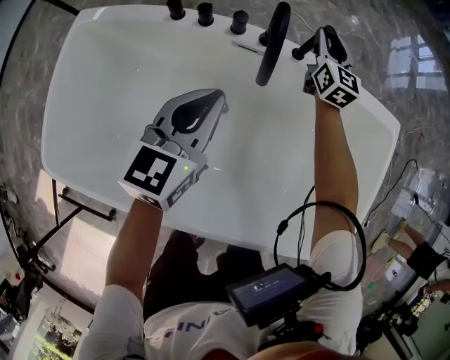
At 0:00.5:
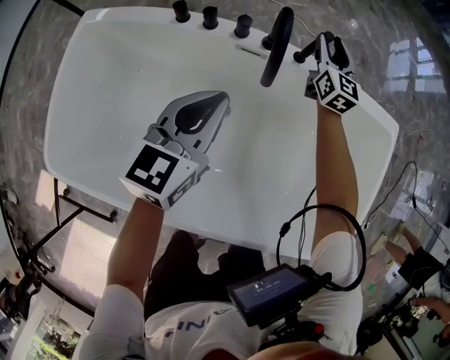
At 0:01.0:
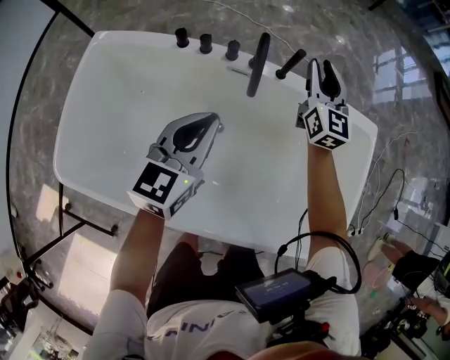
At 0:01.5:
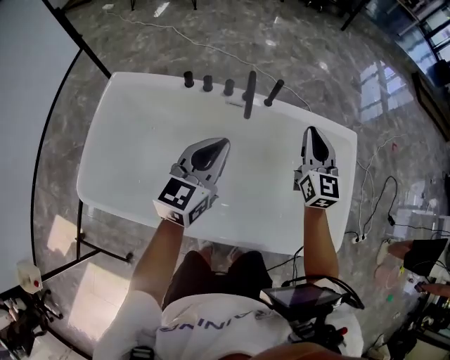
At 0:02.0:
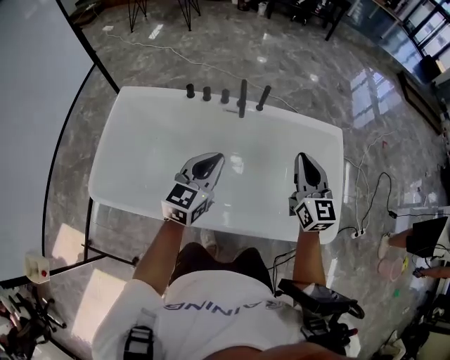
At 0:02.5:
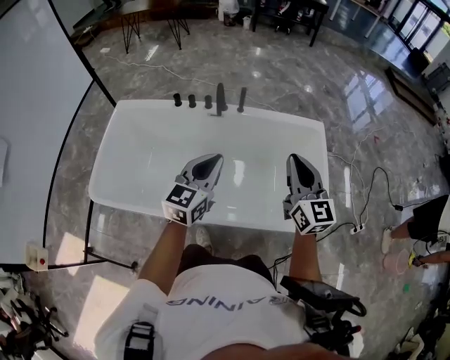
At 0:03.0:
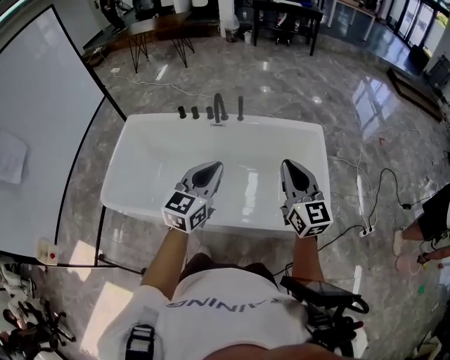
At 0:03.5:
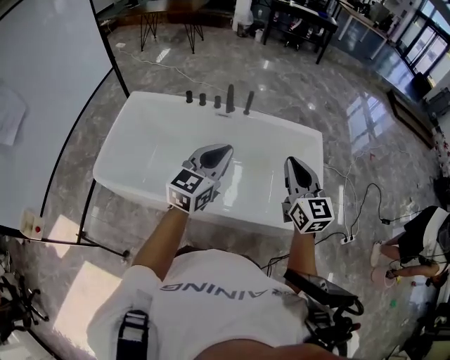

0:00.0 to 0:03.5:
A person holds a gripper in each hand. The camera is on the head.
0:00.0 to 0:02.0: The left gripper is displaced backward and upward by some 35 cm. The right gripper goes some 60 cm backward and upward, and closes up.
0:02.0 to 0:03.5: The left gripper travels backward, to the right and upward by about 25 cm, while the right gripper shifts some 25 cm backward, upward and to the right.

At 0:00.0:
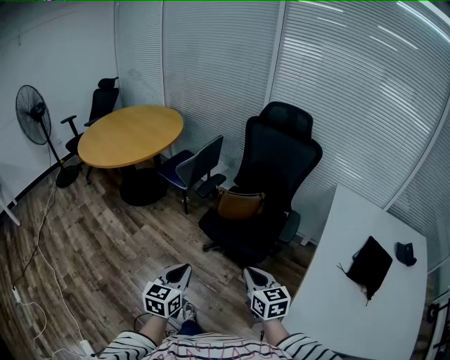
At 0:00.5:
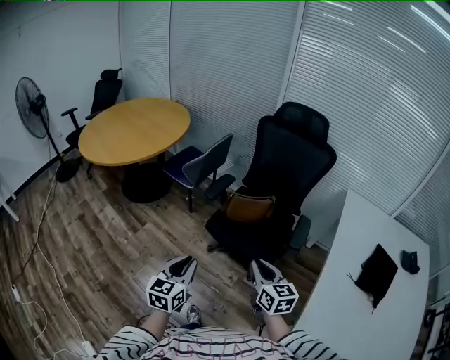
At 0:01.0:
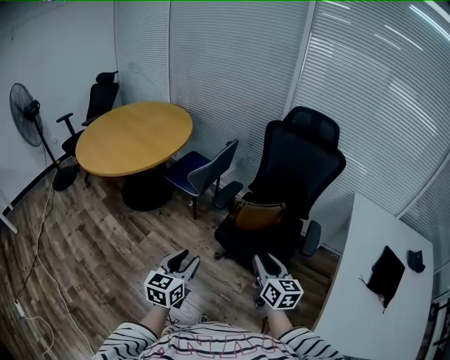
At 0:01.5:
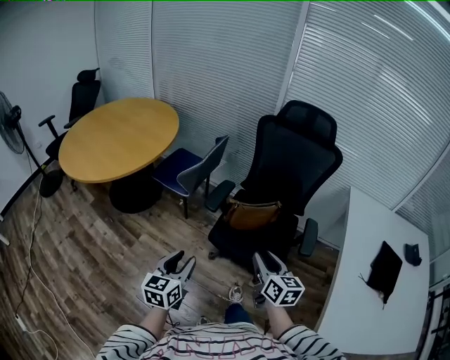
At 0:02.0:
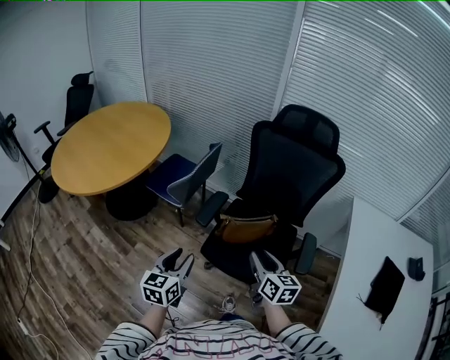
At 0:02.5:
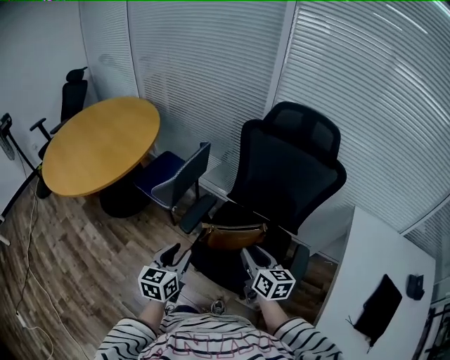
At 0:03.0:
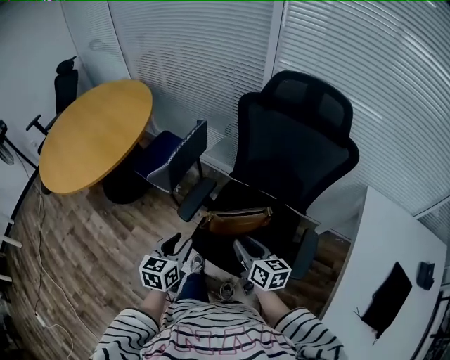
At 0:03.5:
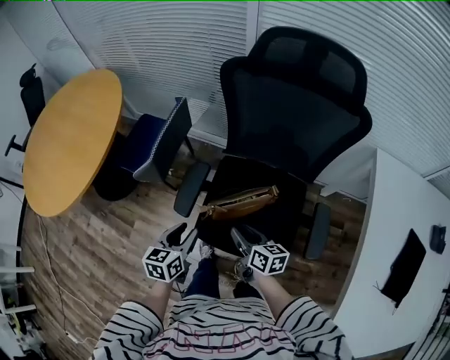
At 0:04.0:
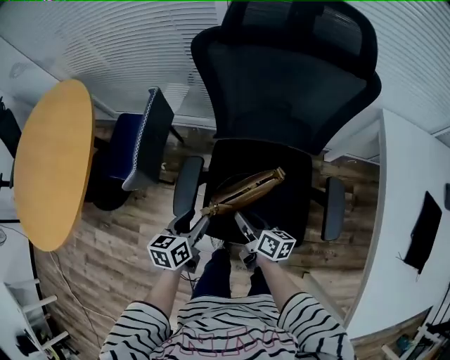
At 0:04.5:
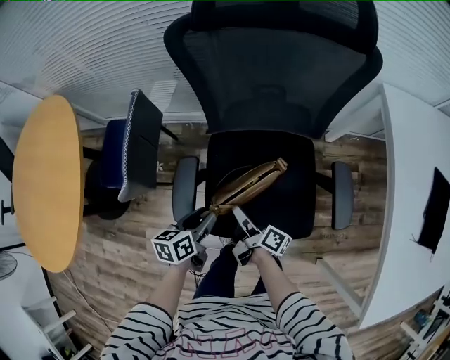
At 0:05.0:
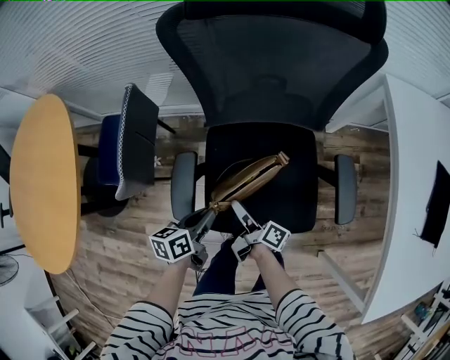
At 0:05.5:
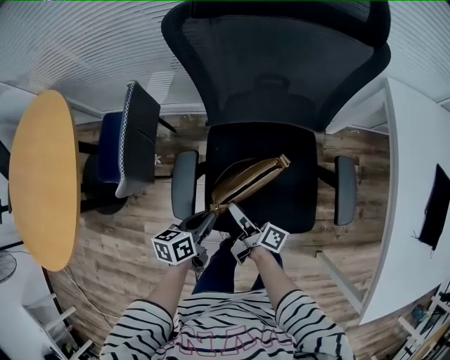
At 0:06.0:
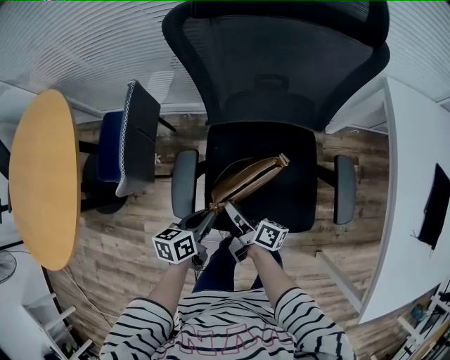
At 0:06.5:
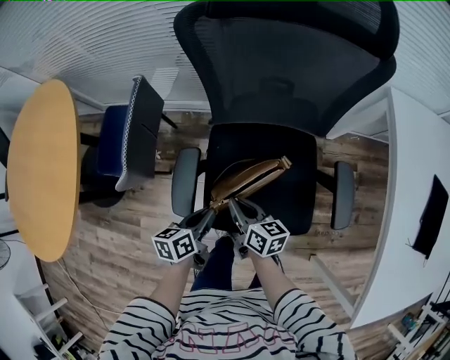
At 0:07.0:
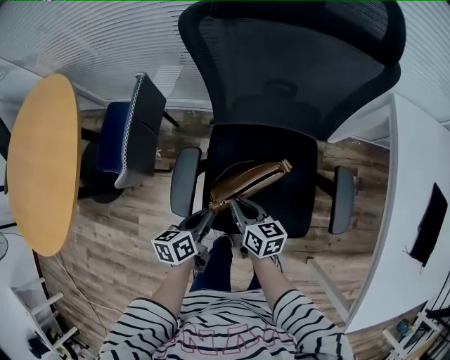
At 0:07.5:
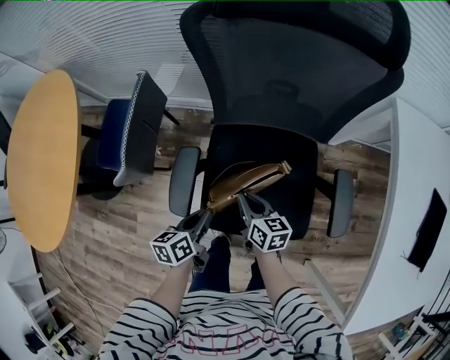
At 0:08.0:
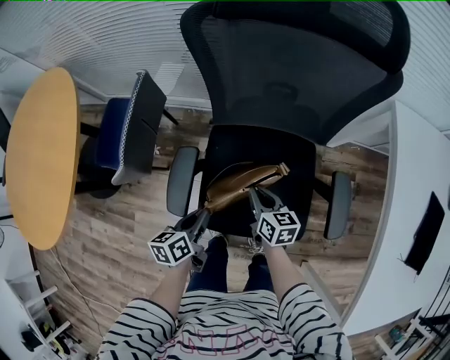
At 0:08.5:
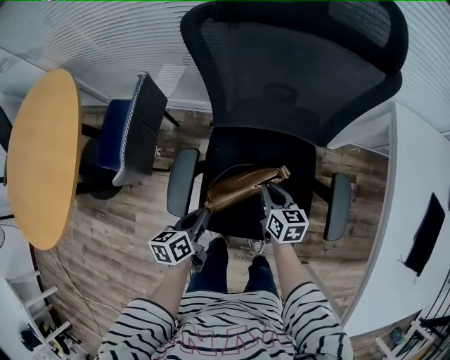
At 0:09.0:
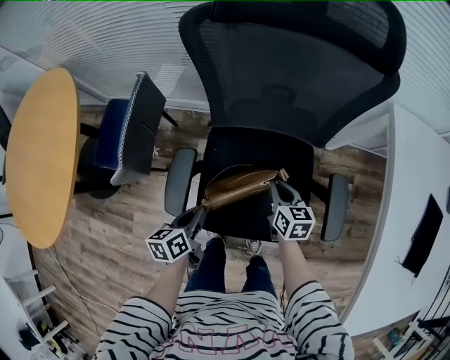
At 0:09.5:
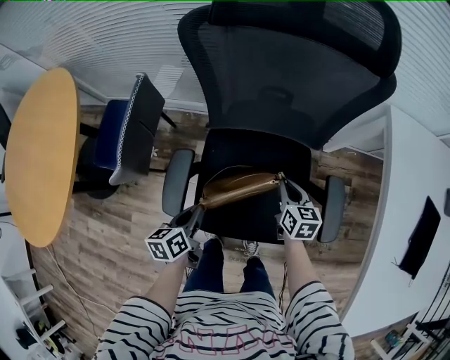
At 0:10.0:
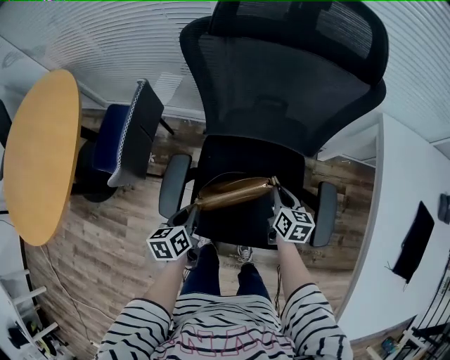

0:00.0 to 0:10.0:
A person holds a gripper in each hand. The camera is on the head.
0:00.0 to 0:02.0: The grippers both shift forward by roughly 30 cm. The right gripper changes its angle by some 20 degrees, and opens its fingers. Meanwhile the left gripper opens up.
0:02.0 to 0:04.0: The right gripper heads downward and forward, covering roughly 30 cm, and swivels some 40 degrees, while the left gripper heads forward and downward, covering some 35 cm, and rotates about 30 degrees.
0:04.0 to 0:06.0: The left gripper shifts about 5 cm downward, and closes up. Meanwhile the right gripper ends up roughly 5 cm from where it was, swivels roughly 20 degrees, and closes up.
0:06.0 to 0:08.0: The right gripper heads to the right and forward, covering approximately 10 cm, and rotates around the line of its fingers by approximately 40 degrees, counterclockwise from behind.
0:08.0 to 0:10.0: The right gripper heads to the right, covering some 10 cm.

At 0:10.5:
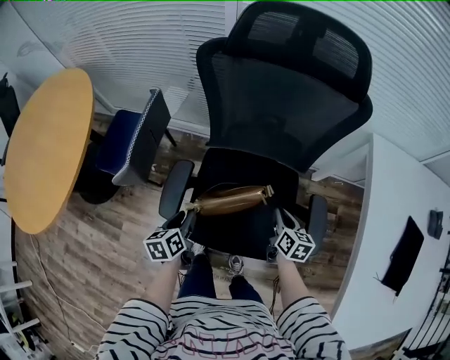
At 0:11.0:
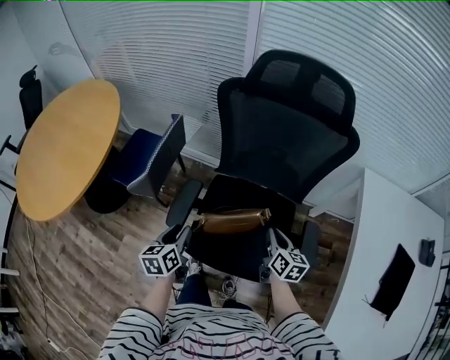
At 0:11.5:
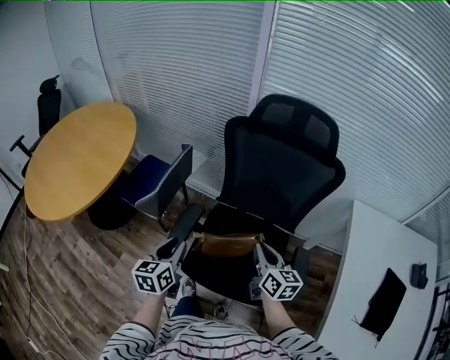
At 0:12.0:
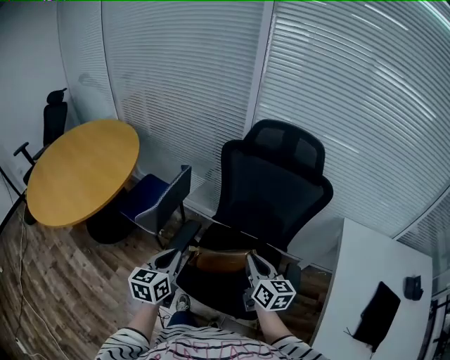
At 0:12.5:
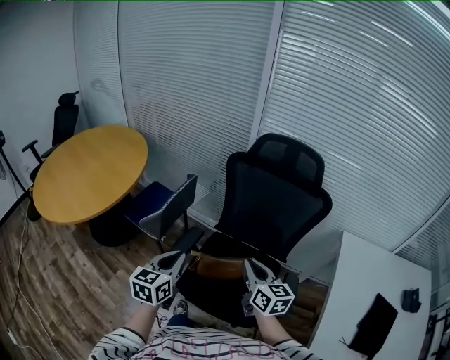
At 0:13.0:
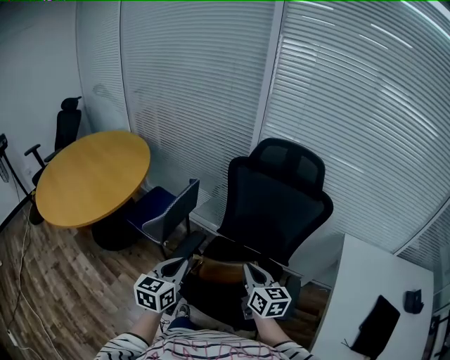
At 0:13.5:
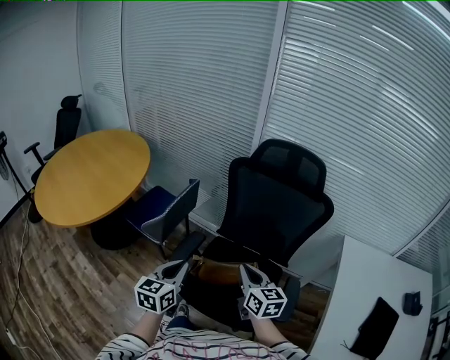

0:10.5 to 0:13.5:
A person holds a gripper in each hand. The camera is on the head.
0:10.5 to 0:12.0: The grippers both shift upward by some 25 cm. The left gripper swivels roughly 30 degrees, and closes. The right gripper turns by about 30 degrees.
0:12.0 to 0:13.5: The grippers make only small movements.

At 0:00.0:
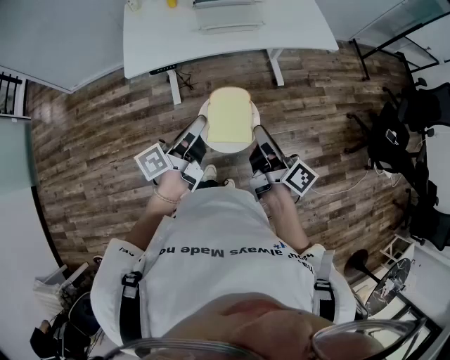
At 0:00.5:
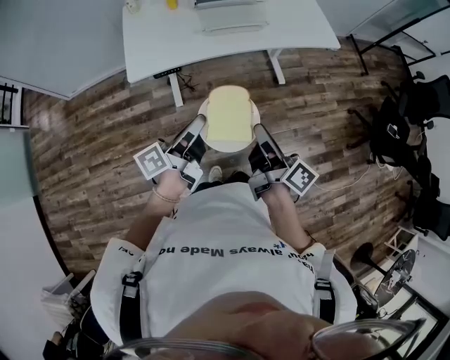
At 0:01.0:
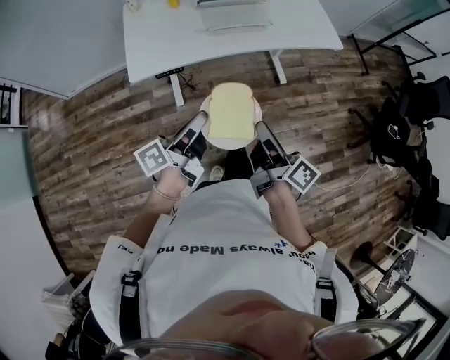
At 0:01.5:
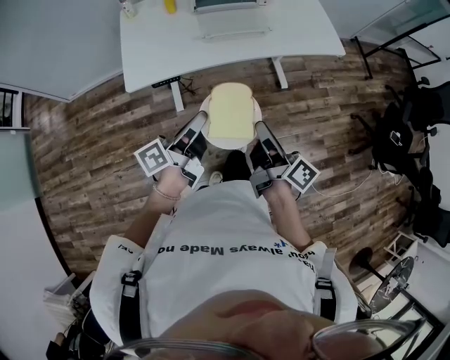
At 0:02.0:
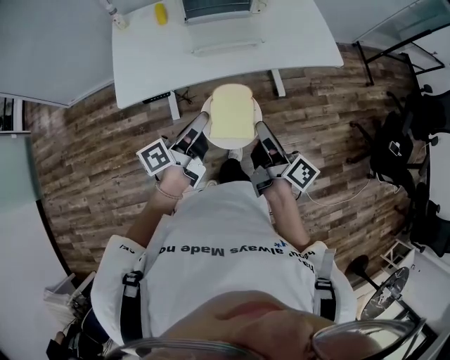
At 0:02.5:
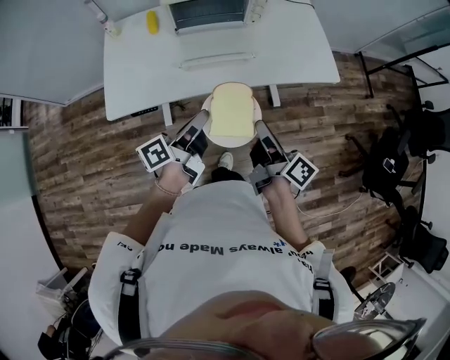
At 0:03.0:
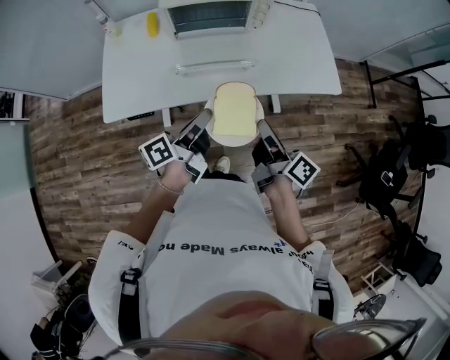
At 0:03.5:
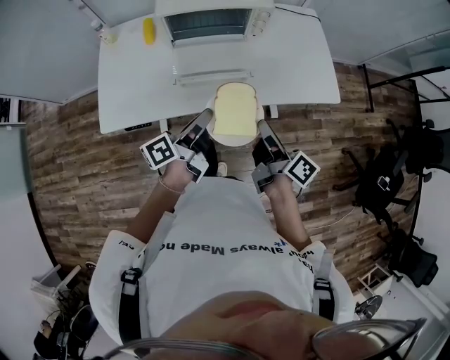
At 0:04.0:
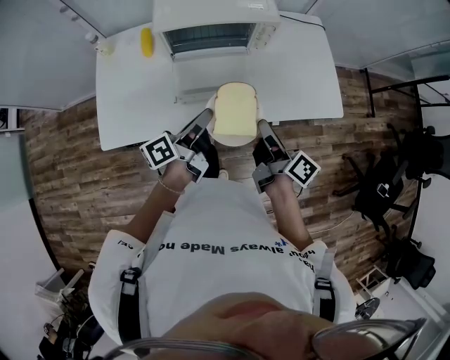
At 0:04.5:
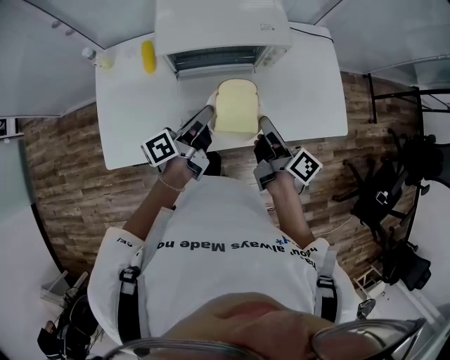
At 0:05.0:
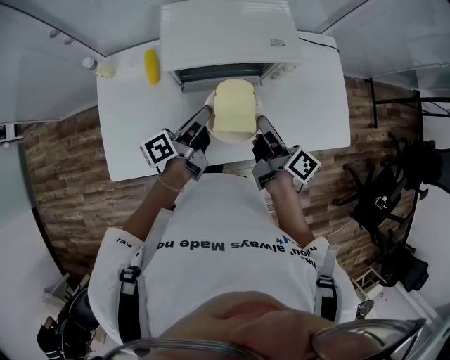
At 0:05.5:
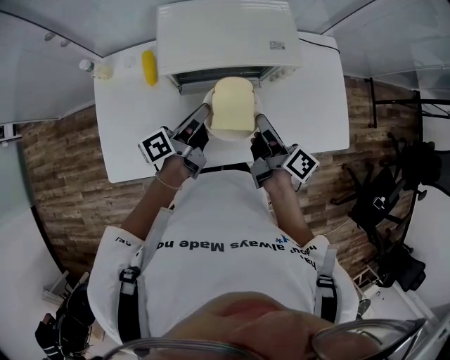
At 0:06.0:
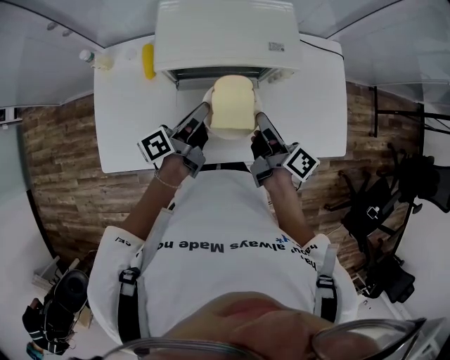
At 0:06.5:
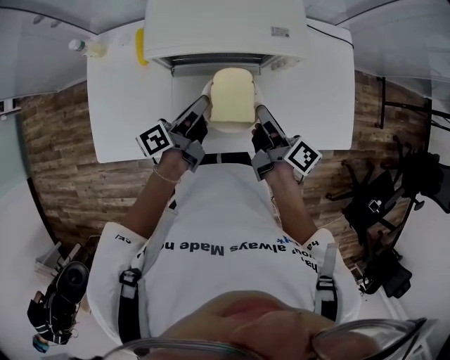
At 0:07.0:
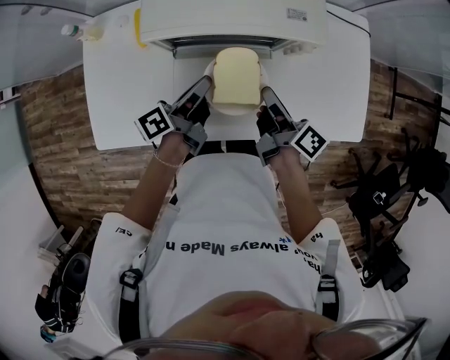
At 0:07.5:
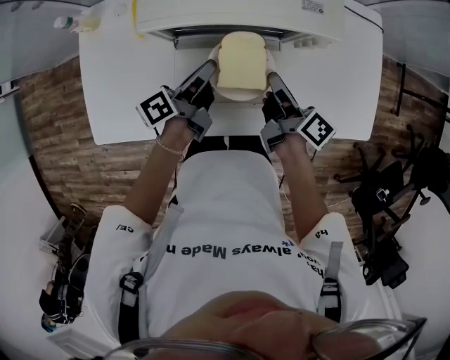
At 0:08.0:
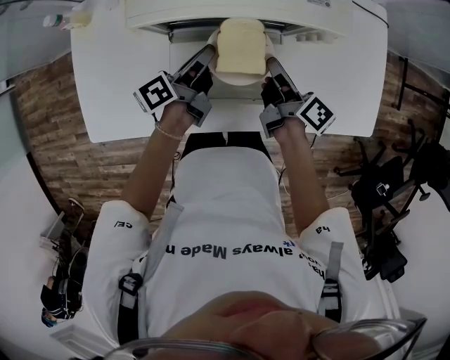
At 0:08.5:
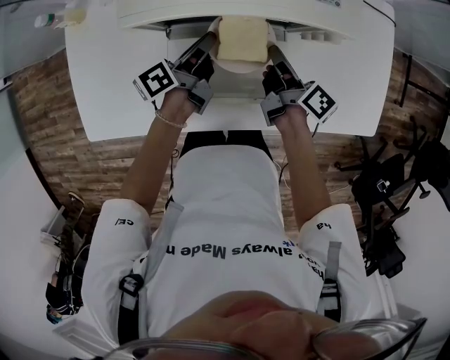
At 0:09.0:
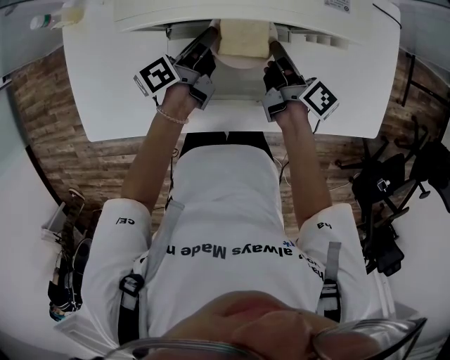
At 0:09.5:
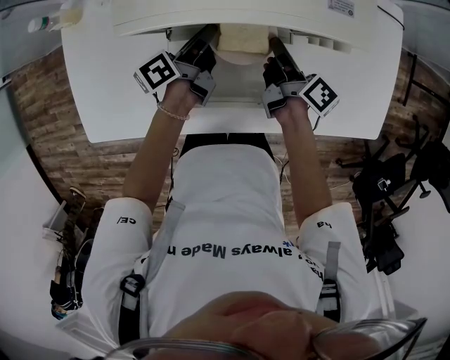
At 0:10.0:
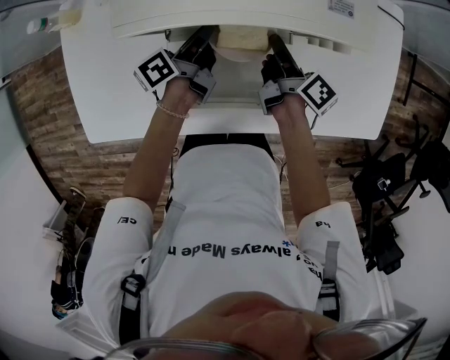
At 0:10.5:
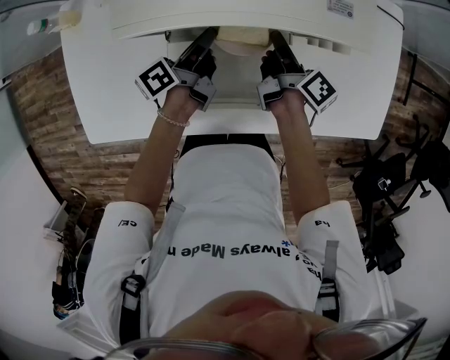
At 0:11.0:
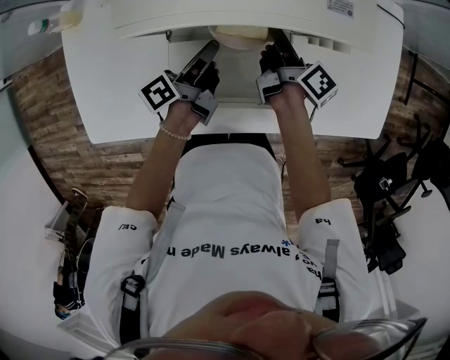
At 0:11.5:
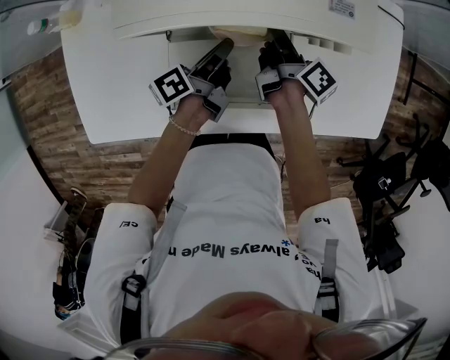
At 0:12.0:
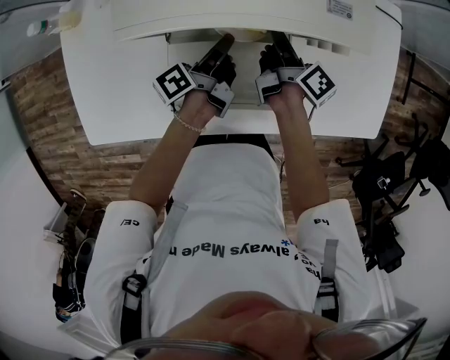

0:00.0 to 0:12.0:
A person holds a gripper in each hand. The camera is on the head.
0:00.0 to 0:02.0: Both grippers travel together forward, about 15 cm.
0:02.0 to 0:04.0: The grippers both shift forward by roughly 30 cm.
0:04.0 to 0:06.0: Both grippers travel together forward, roughly 20 cm.
0:06.0 to 0:08.0: Both grippers travel together downward and forward, about 15 cm.
0:08.0 to 0:10.0: The left gripper is displaced forward by about 5 cm. Meanwhile the right gripper heads forward and downward, covering approximately 10 cm.
0:10.0 to 0:12.0: The grippers make only small movements.
